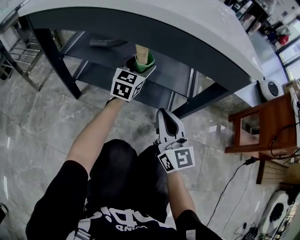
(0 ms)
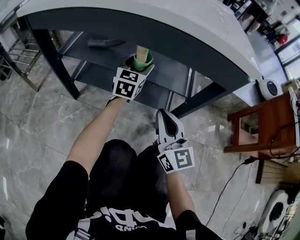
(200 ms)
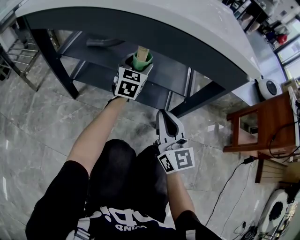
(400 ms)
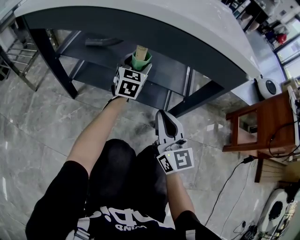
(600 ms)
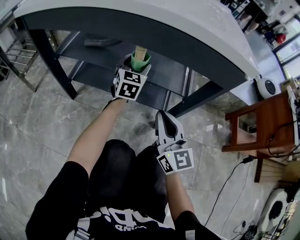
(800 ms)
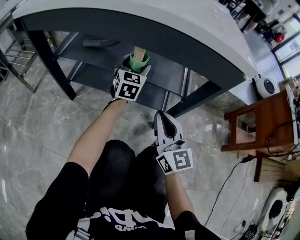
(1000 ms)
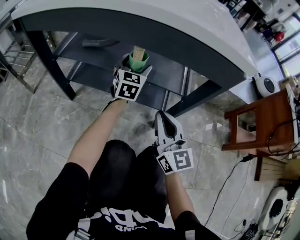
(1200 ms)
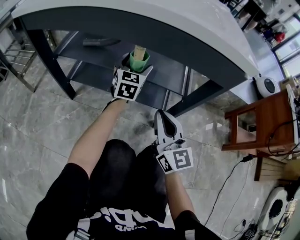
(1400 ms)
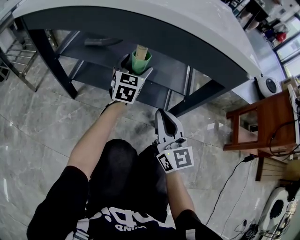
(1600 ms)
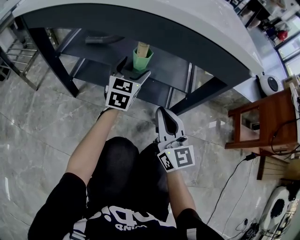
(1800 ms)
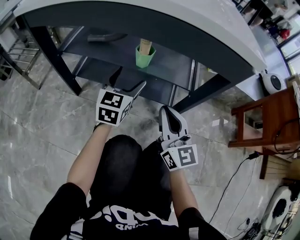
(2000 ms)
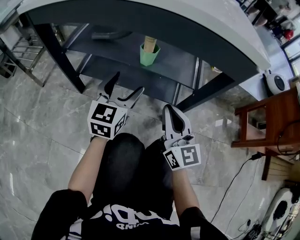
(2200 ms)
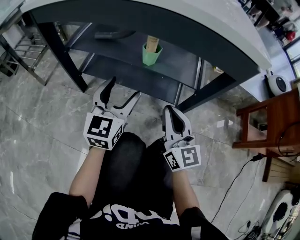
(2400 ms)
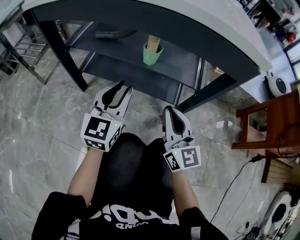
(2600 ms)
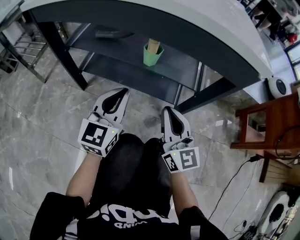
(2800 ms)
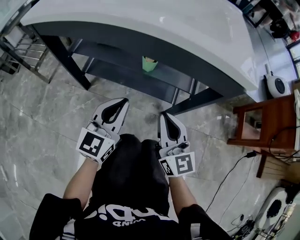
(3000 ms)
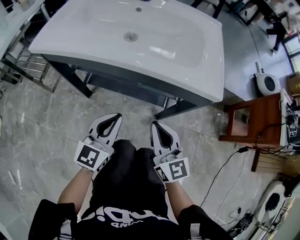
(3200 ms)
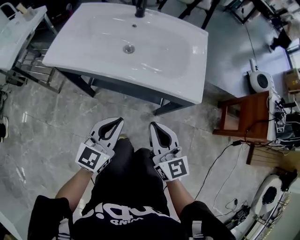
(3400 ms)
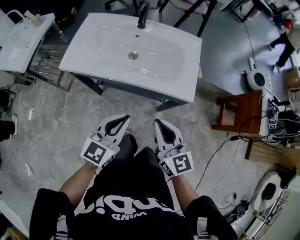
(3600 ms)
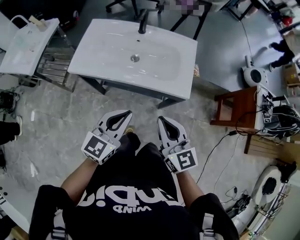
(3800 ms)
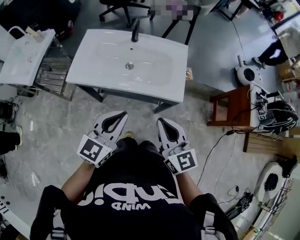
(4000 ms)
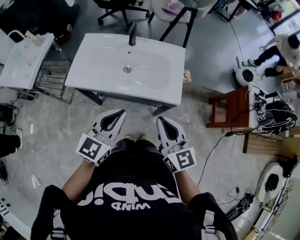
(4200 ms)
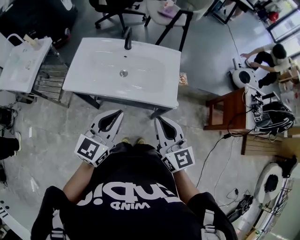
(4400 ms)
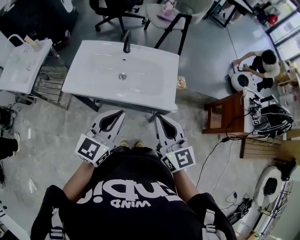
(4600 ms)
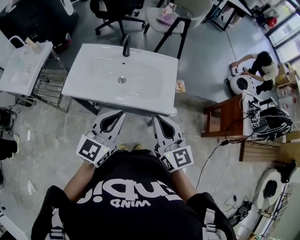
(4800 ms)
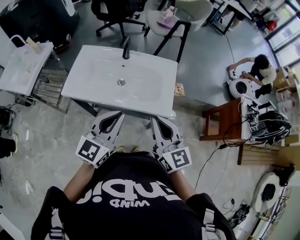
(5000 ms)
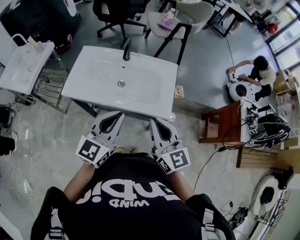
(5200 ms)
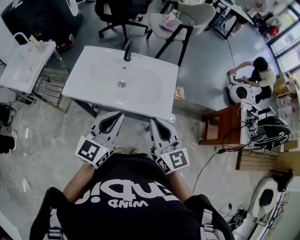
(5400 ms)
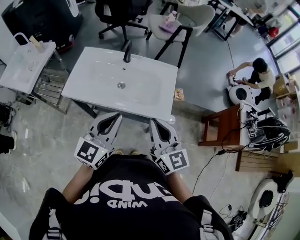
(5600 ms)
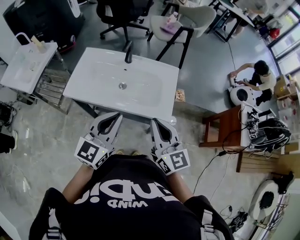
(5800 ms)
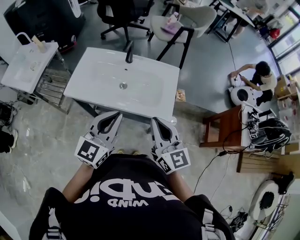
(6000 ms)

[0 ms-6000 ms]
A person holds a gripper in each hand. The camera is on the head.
0 ms to 1600 ms: There are only small adjustments of the grippers.
1600 ms to 3000 ms: The right gripper travels upward by approximately 5 cm, while the left gripper travels backward and upward by about 25 cm, and closes up.
3000 ms to 4400 ms: Both grippers move upward, about 40 cm.
4400 ms to 6000 ms: There are only small adjustments of the grippers.

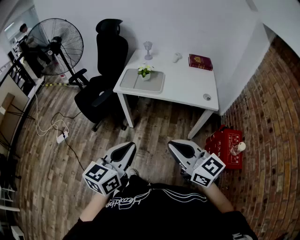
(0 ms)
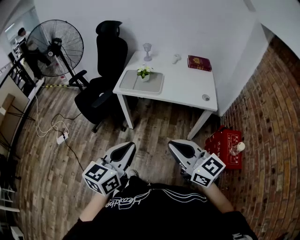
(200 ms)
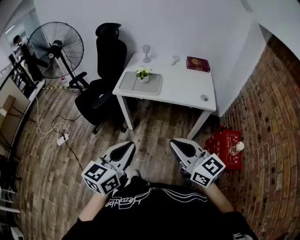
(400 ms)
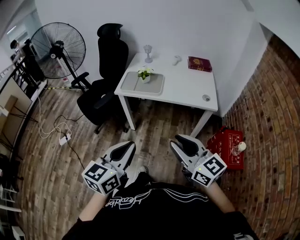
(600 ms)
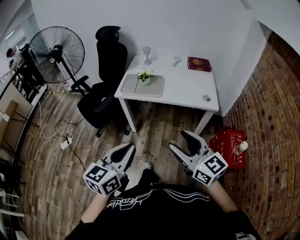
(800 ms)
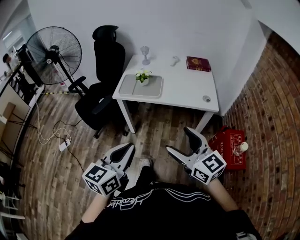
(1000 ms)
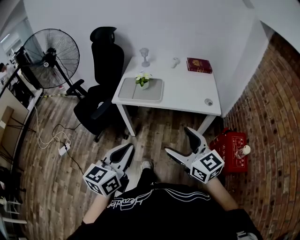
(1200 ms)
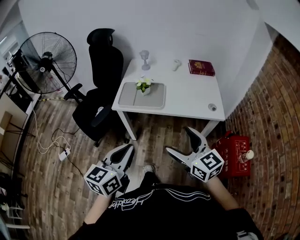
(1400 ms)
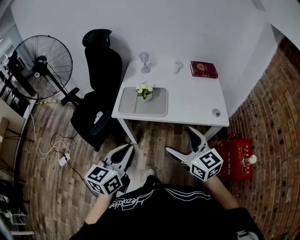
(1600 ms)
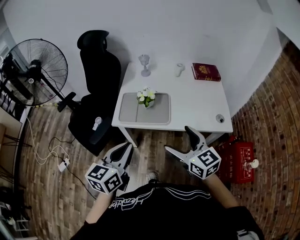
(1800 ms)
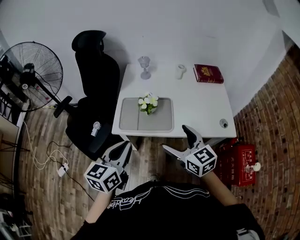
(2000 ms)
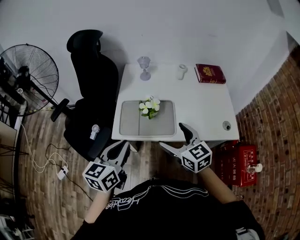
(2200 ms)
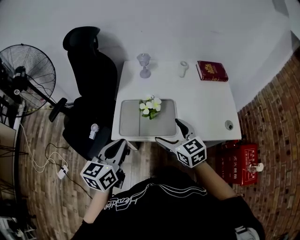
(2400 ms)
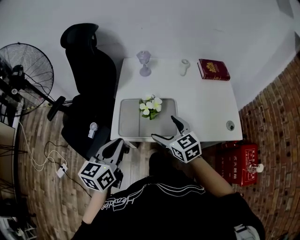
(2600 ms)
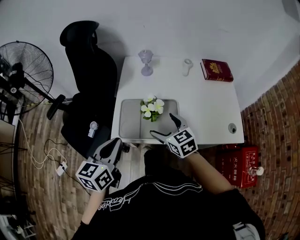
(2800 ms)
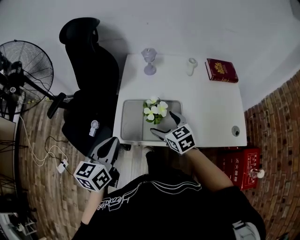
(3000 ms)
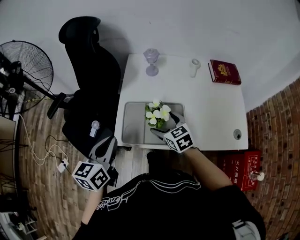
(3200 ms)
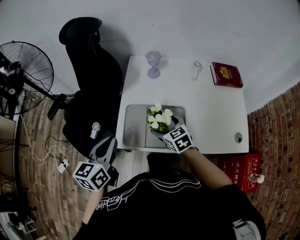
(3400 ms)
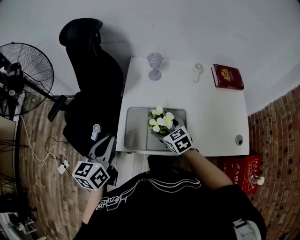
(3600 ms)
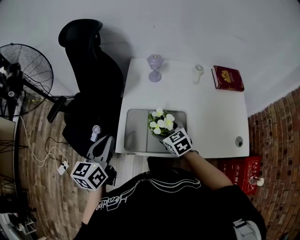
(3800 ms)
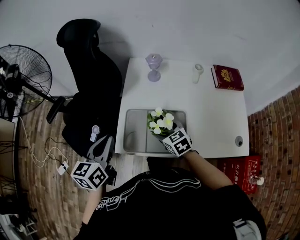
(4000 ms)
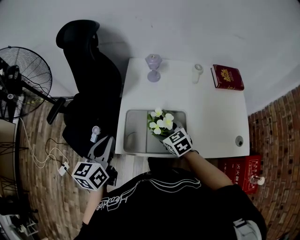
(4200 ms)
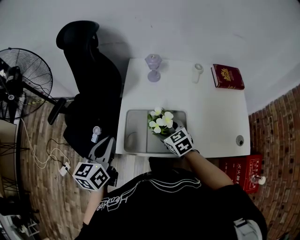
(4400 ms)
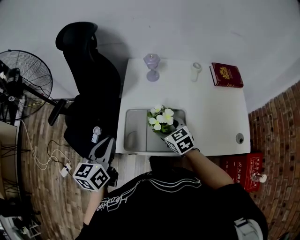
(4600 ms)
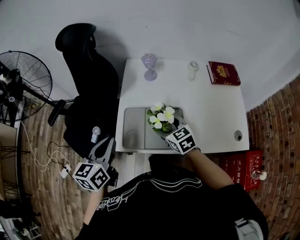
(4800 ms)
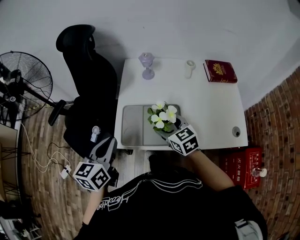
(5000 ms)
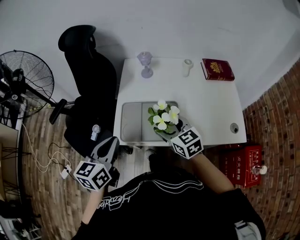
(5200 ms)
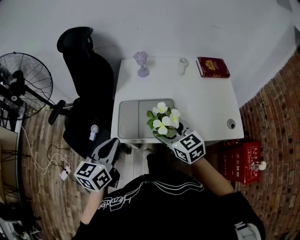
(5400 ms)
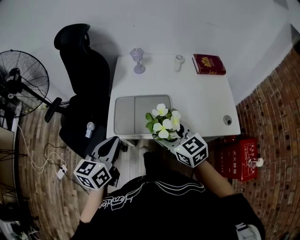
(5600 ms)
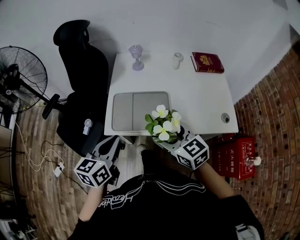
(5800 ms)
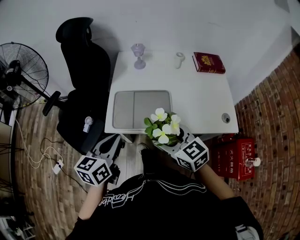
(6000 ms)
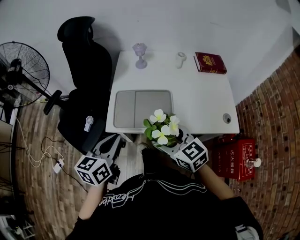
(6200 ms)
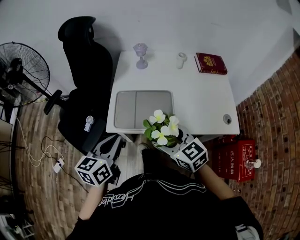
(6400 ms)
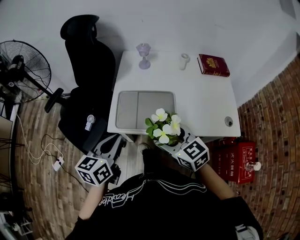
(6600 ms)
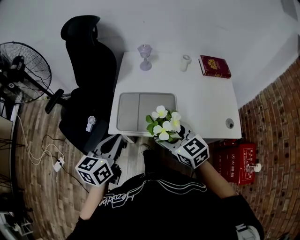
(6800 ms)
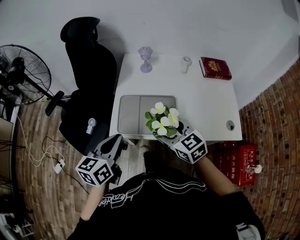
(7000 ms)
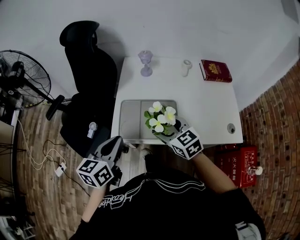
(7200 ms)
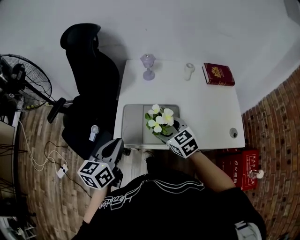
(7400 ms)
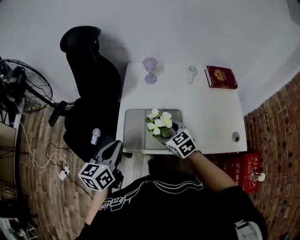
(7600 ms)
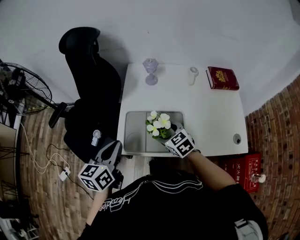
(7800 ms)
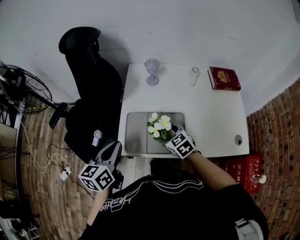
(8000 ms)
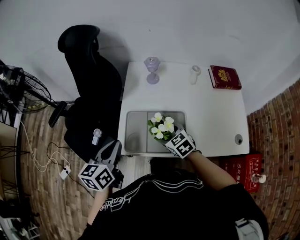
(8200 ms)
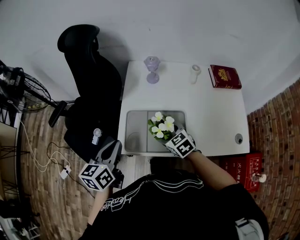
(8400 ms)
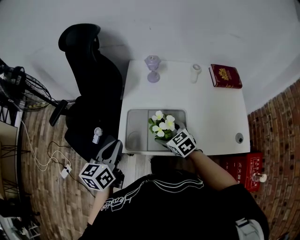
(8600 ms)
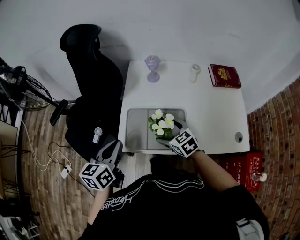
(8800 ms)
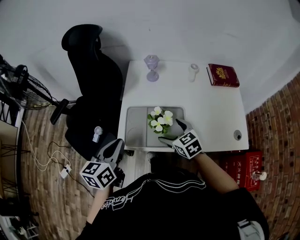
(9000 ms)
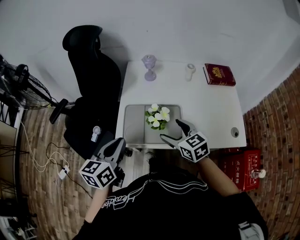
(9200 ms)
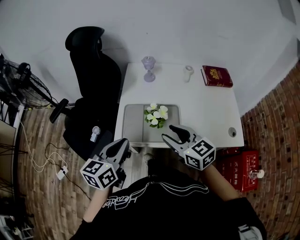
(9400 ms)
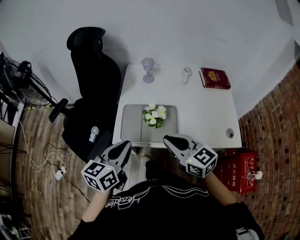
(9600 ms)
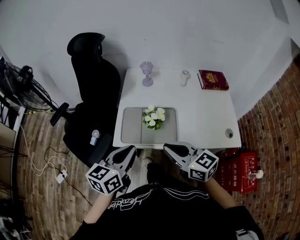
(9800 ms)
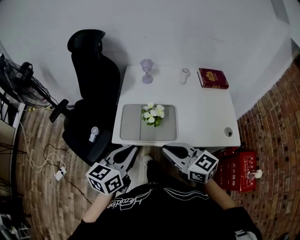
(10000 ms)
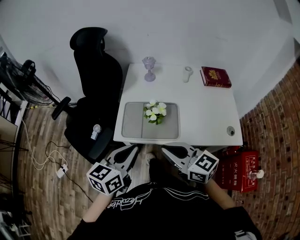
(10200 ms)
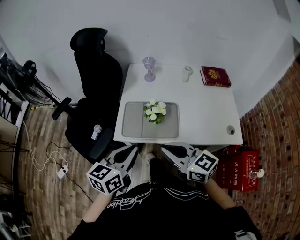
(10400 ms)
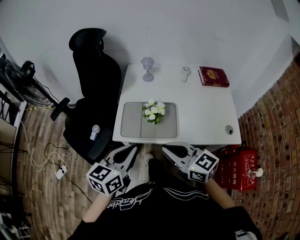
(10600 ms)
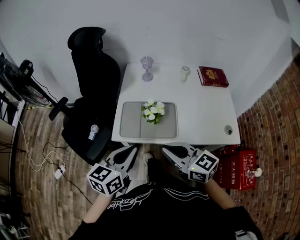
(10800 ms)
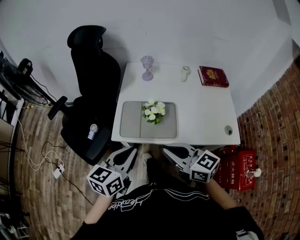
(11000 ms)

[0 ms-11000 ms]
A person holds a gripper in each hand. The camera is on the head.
0 ms to 1600 ms: Both grippers move forward, some 20 cm. The right gripper opens.
1600 ms to 3200 ms: The left gripper shifts approximately 30 cm forward and to the left, while the right gripper is displaced forward and downward by roughly 40 cm, and changes its angle by about 30 degrees.
3200 ms to 4800 ms: There are only small adjustments of the grippers.
4800 ms to 6200 ms: The right gripper moves backward and upward, roughly 20 cm, while the left gripper moves backward and to the right, approximately 10 cm.
6200 ms to 7800 ms: The right gripper moves forward and downward, some 20 cm. Meanwhile the left gripper goes approximately 10 cm forward.
7800 ms to 9400 ms: The left gripper is displaced backward by some 5 cm. Meanwhile the right gripper is displaced upward and backward by some 15 cm, and turns by some 20 degrees.
9400 ms to 11000 ms: Both grippers move backward, roughly 5 cm. The right gripper closes.

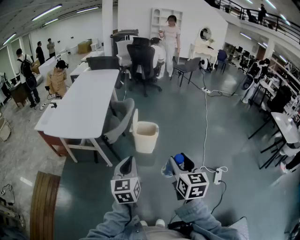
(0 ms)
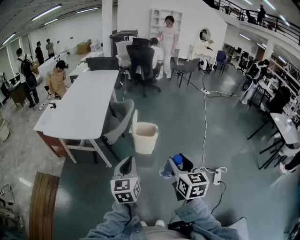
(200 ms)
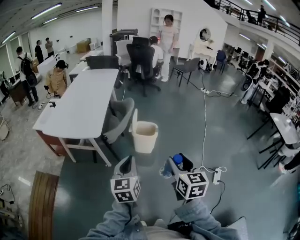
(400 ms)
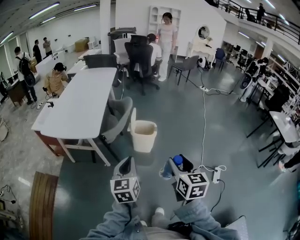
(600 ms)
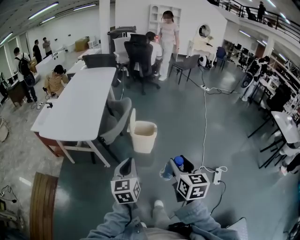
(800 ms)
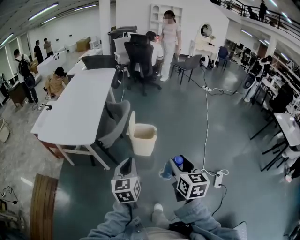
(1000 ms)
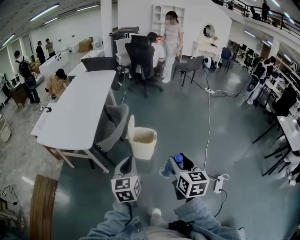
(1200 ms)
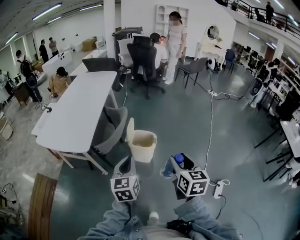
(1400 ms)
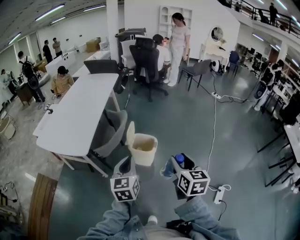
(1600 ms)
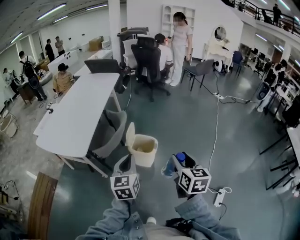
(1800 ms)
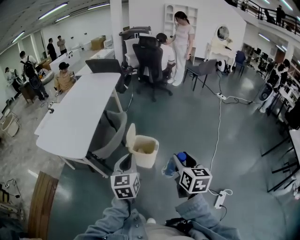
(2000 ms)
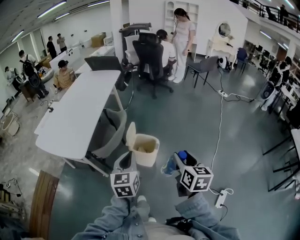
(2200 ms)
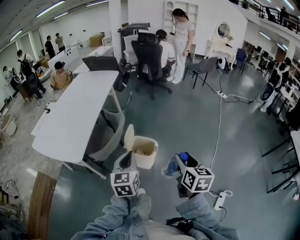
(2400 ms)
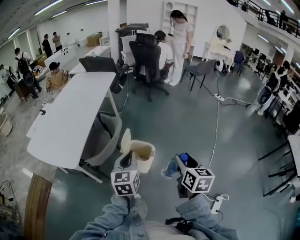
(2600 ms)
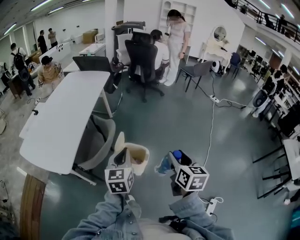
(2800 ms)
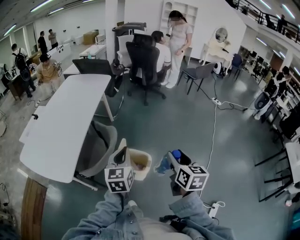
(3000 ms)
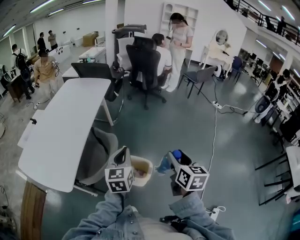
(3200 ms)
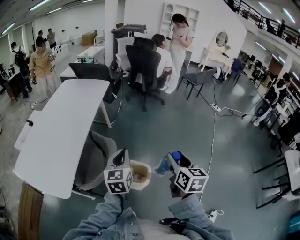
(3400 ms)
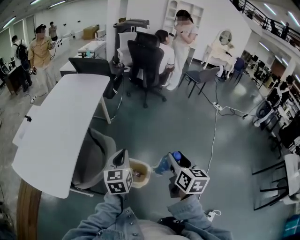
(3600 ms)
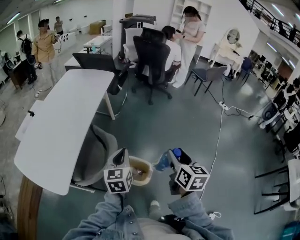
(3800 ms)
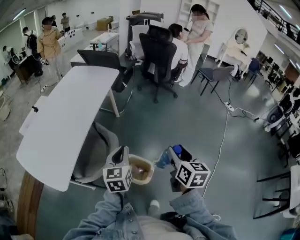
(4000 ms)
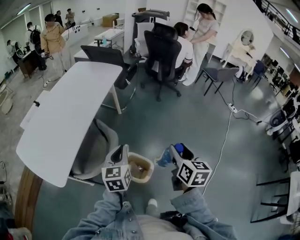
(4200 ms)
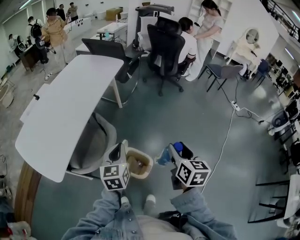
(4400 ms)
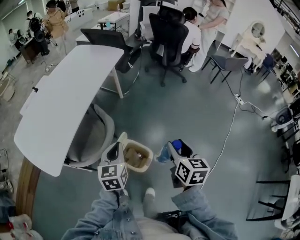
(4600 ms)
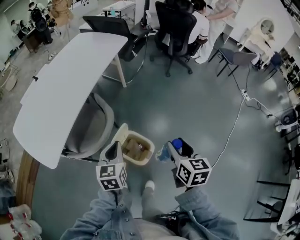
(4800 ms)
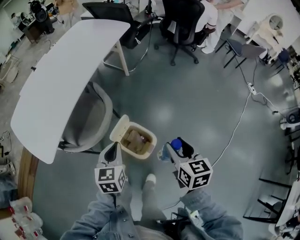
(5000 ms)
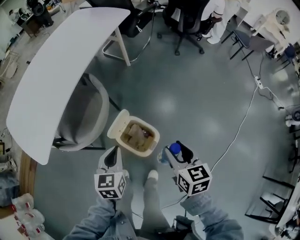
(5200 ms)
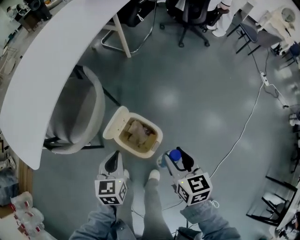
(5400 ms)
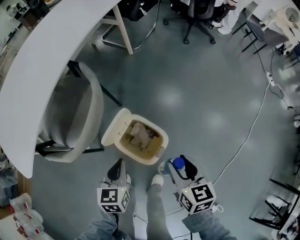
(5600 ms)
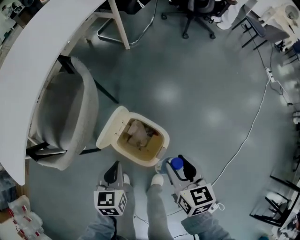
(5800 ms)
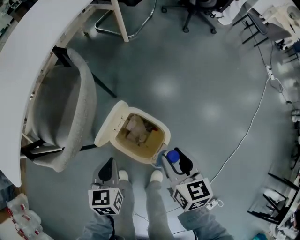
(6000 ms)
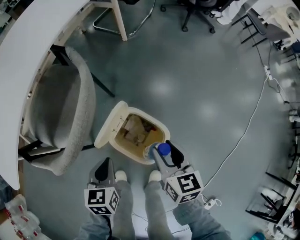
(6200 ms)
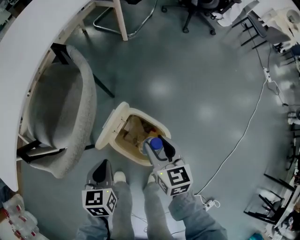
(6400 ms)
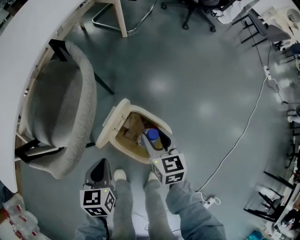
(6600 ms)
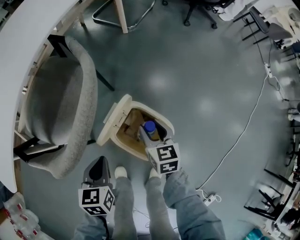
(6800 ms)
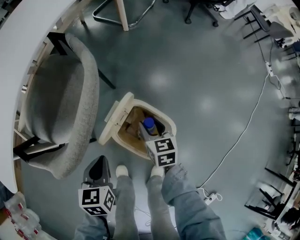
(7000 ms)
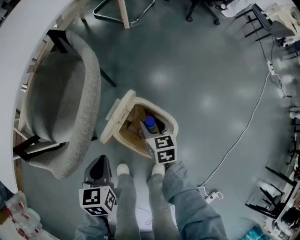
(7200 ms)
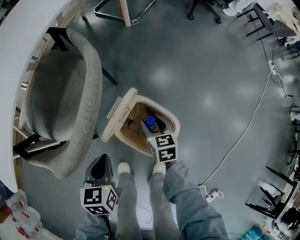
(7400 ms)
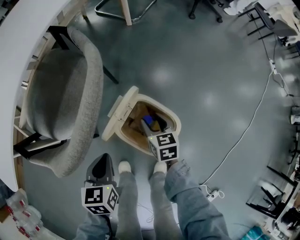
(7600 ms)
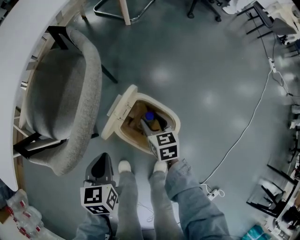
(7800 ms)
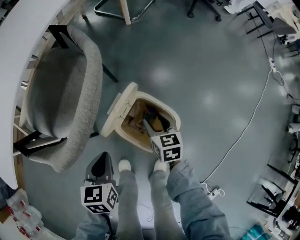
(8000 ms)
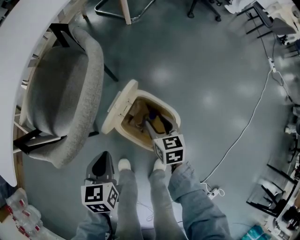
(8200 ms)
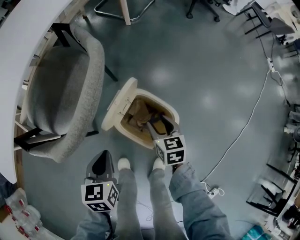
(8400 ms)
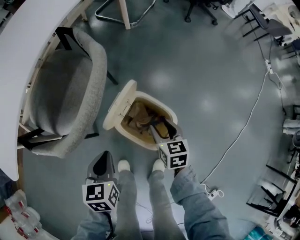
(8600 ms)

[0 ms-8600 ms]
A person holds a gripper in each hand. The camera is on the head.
0 ms to 1400 ms: Both grippers move forward and to the right, about 20 cm.
1400 ms to 2800 ms: Both grippers move forward, roughly 25 cm.
2800 ms to 4400 ms: The grippers both shift forward by roughly 25 cm.
4400 ms to 5800 ms: The grippers both shift downward by about 40 cm. The right gripper rotates approximately 20 degrees. The left gripper changes its angle by about 20 degrees.
5800 ms to 7200 ms: The right gripper heads downward, forward and to the left, covering roughly 25 cm. The left gripper shifts roughly 10 cm to the left.
7200 ms to 8600 ms: The right gripper heads backward, covering some 5 cm.
